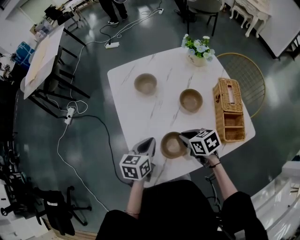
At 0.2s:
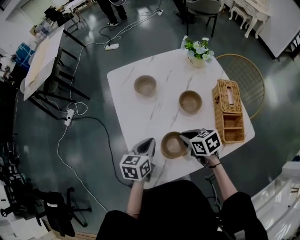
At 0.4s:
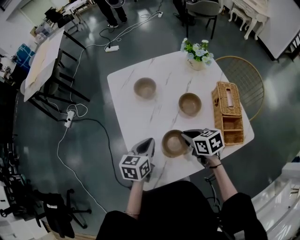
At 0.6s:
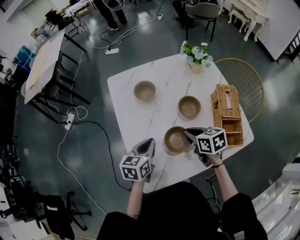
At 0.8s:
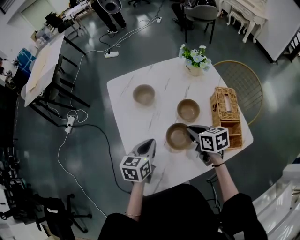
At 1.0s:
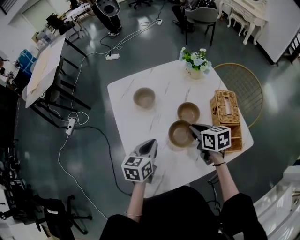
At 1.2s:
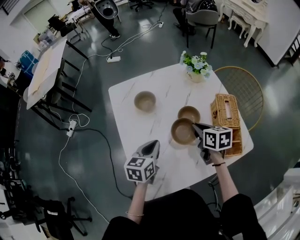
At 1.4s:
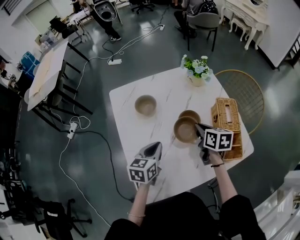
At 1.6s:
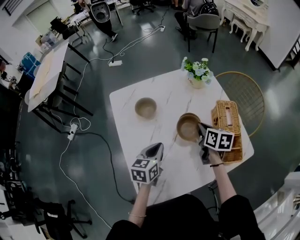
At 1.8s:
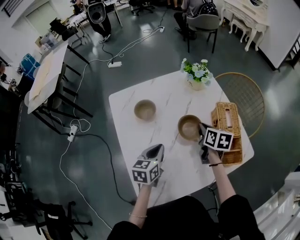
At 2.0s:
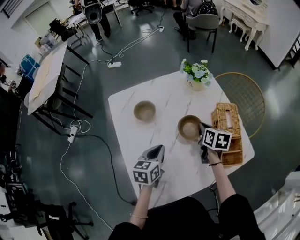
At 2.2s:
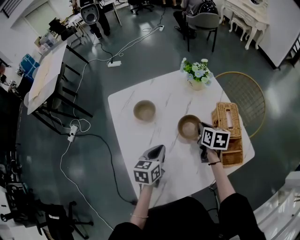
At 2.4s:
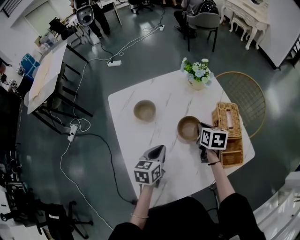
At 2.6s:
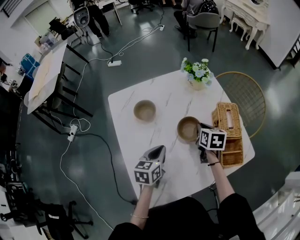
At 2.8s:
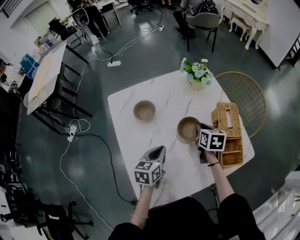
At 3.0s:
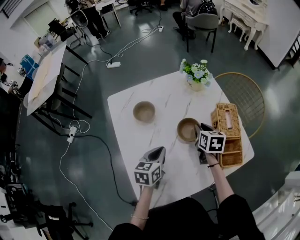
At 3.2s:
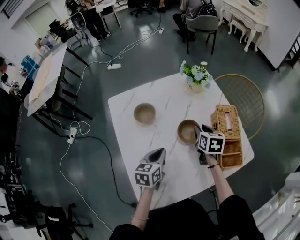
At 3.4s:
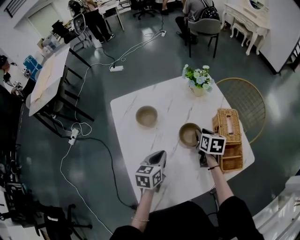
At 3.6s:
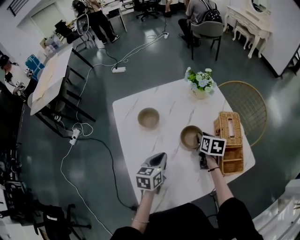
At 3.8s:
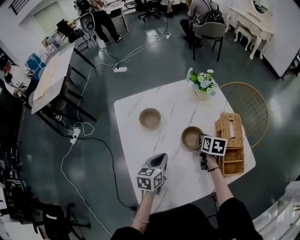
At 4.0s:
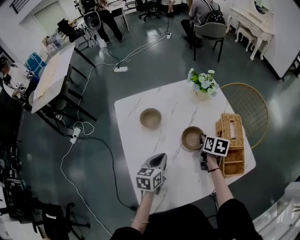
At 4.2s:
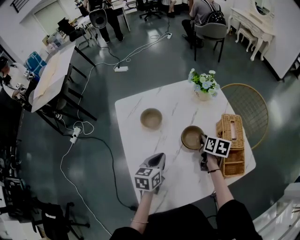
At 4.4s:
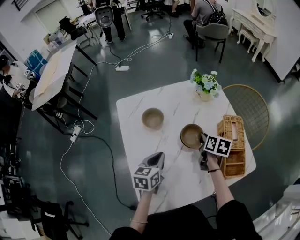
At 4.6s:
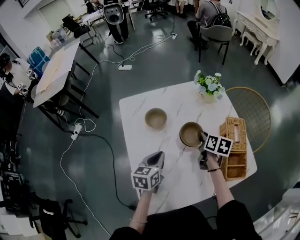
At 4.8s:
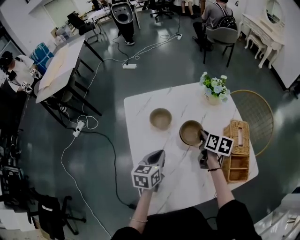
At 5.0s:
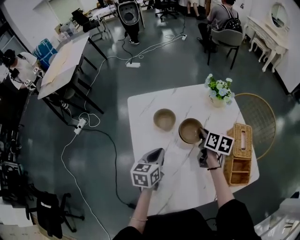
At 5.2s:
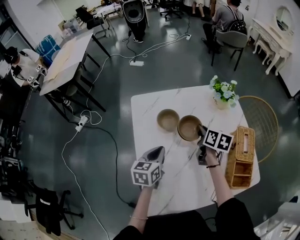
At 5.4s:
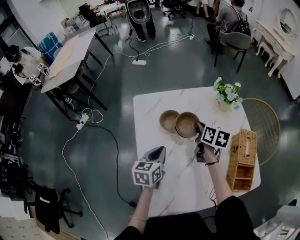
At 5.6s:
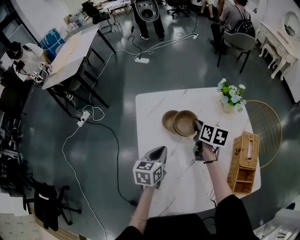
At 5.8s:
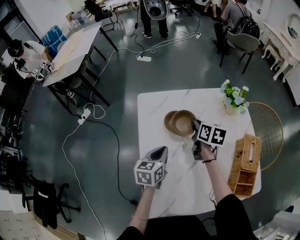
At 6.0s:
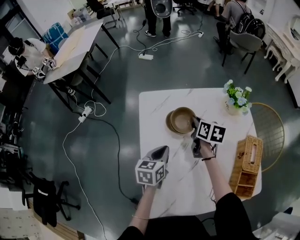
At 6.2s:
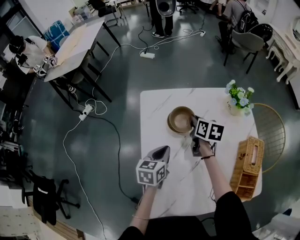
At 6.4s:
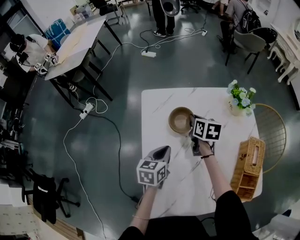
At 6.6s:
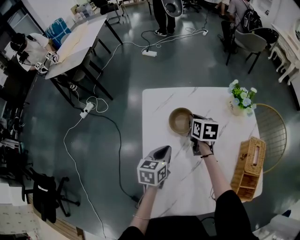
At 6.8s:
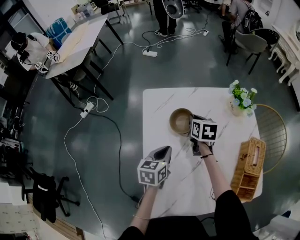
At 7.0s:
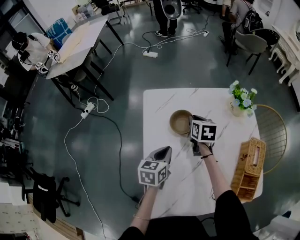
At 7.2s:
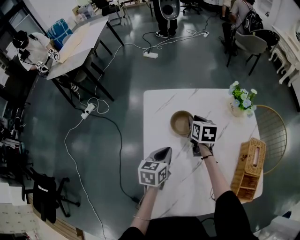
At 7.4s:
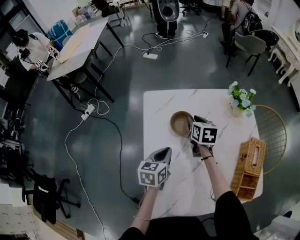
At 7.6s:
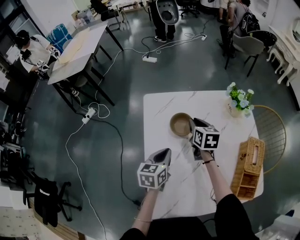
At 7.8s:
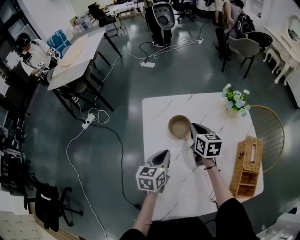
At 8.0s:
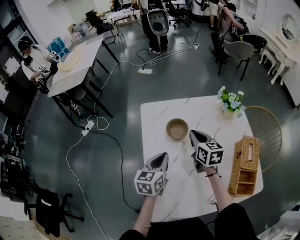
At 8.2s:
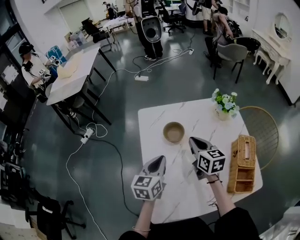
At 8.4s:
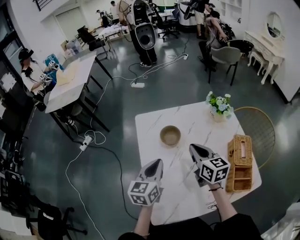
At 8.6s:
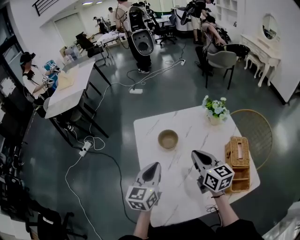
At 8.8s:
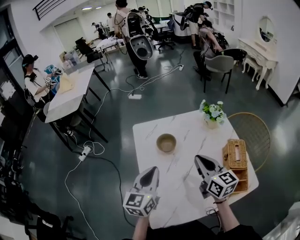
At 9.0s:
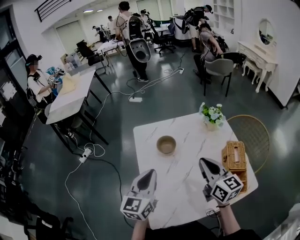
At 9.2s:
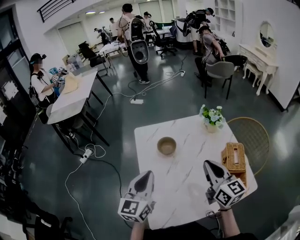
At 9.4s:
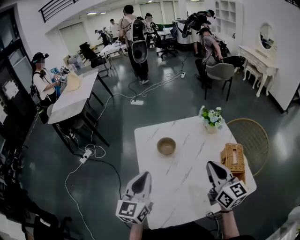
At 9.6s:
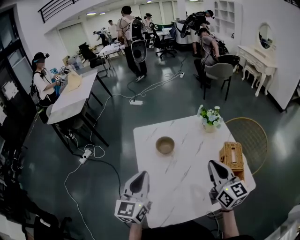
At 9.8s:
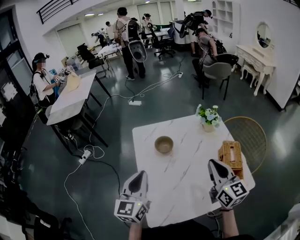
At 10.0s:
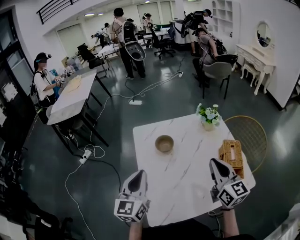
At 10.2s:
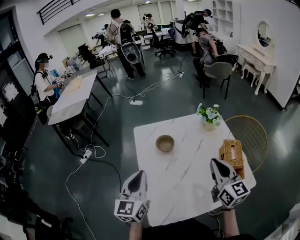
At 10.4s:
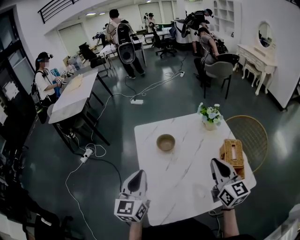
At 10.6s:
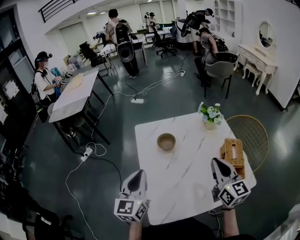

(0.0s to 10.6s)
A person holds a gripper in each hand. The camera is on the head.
0.0s - 1.6s: The left gripper shifts roughly 10 cm forward and to the right. The right gripper shifts some 20 cm forward and to the right, and swivels about 40 degrees.
1.6s - 3.0s: The grippers make only small movements.
3.0s - 4.6s: The grippers move only a little.
4.6s - 6.0s: The right gripper shifts roughly 20 cm to the left and forward; the left gripper moves to the left and forward, approximately 10 cm.
6.0s - 7.6s: The grippers move only a little.
7.6s - 9.0s: The right gripper heads backward and upward, covering some 25 cm, and turns by some 30 degrees. The left gripper heads upward and backward, covering about 20 cm, and changes its angle by approximately 30 degrees.
9.0s - 10.6s: The left gripper moves about 5 cm, while the right gripper travels backward by about 5 cm.

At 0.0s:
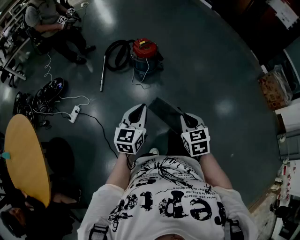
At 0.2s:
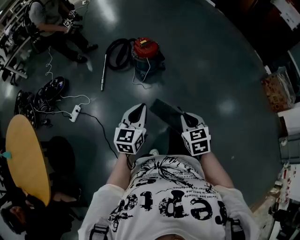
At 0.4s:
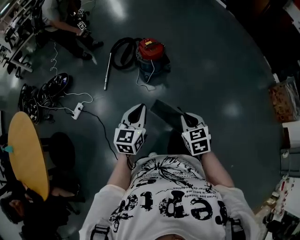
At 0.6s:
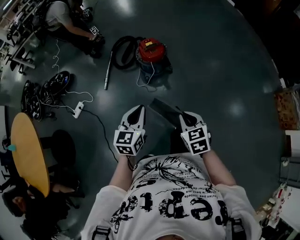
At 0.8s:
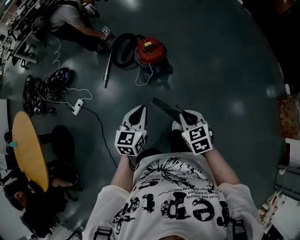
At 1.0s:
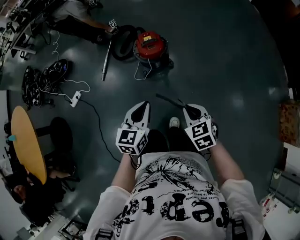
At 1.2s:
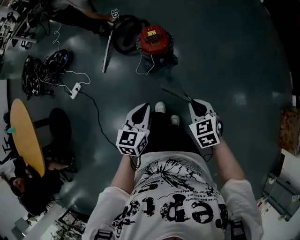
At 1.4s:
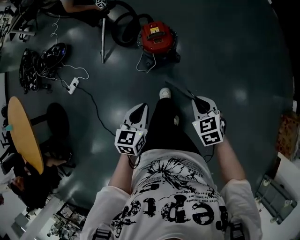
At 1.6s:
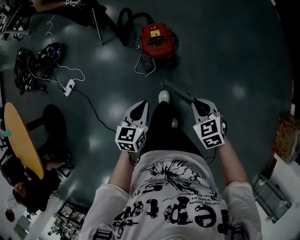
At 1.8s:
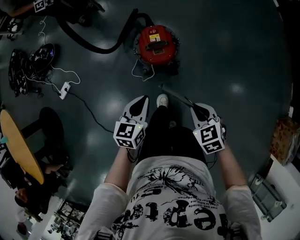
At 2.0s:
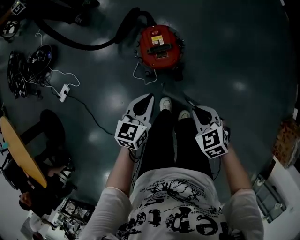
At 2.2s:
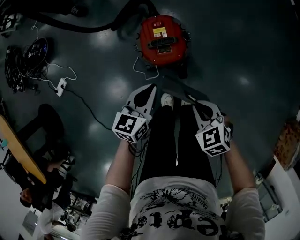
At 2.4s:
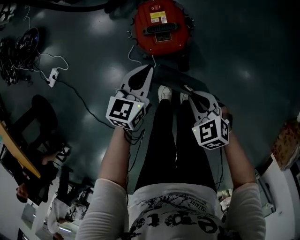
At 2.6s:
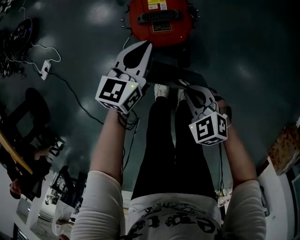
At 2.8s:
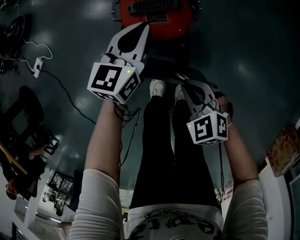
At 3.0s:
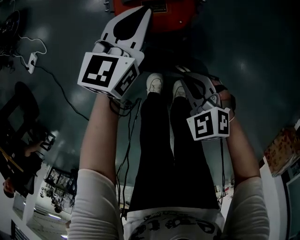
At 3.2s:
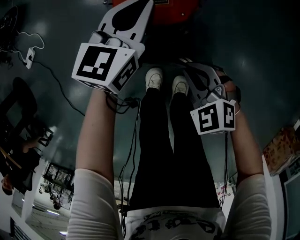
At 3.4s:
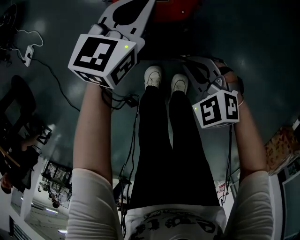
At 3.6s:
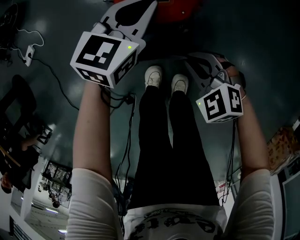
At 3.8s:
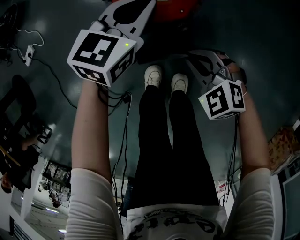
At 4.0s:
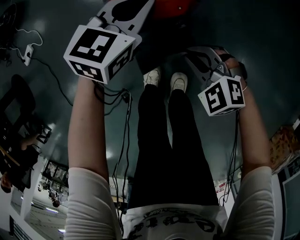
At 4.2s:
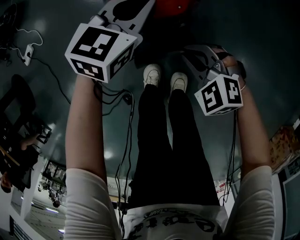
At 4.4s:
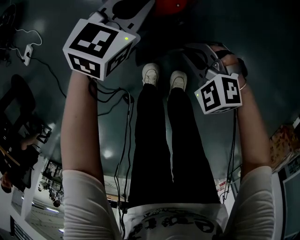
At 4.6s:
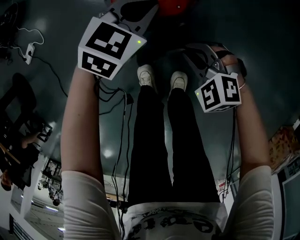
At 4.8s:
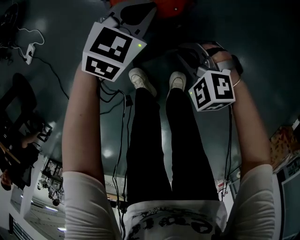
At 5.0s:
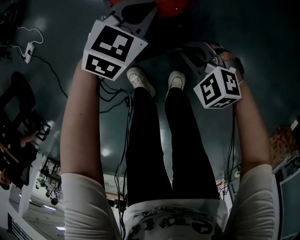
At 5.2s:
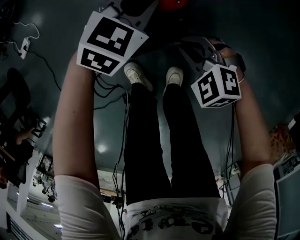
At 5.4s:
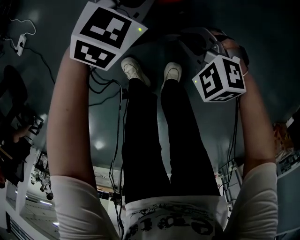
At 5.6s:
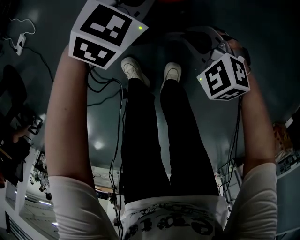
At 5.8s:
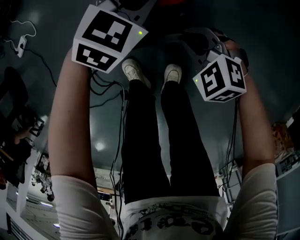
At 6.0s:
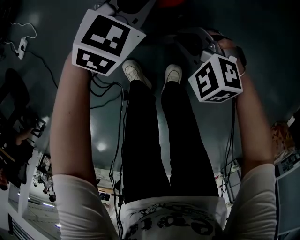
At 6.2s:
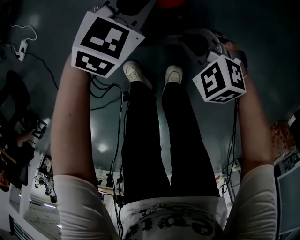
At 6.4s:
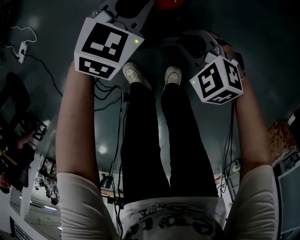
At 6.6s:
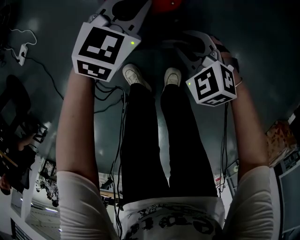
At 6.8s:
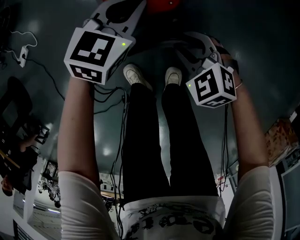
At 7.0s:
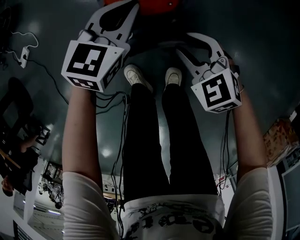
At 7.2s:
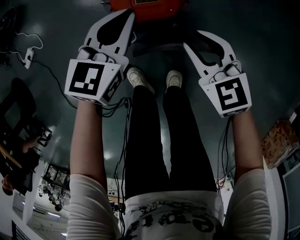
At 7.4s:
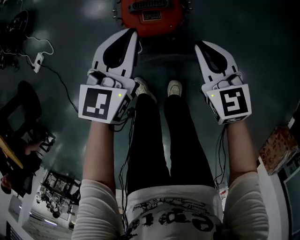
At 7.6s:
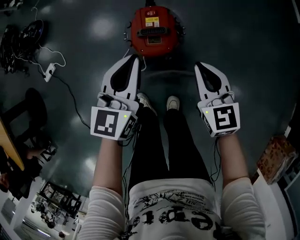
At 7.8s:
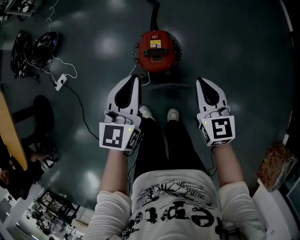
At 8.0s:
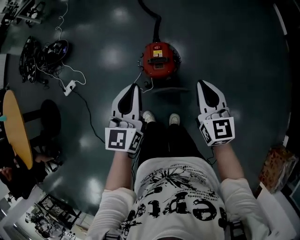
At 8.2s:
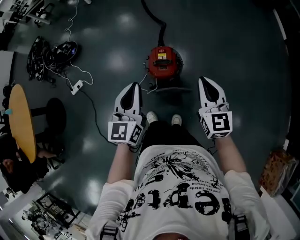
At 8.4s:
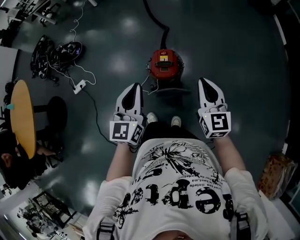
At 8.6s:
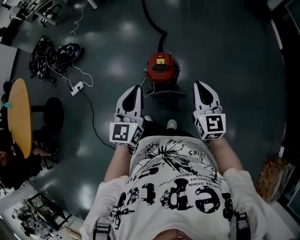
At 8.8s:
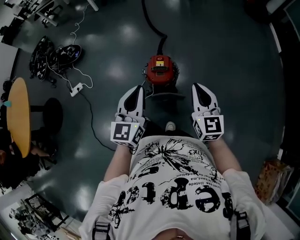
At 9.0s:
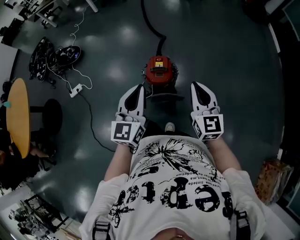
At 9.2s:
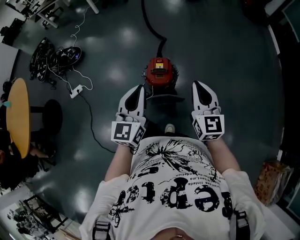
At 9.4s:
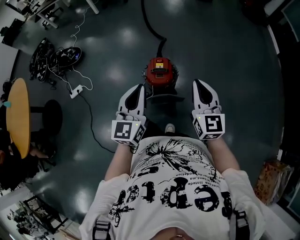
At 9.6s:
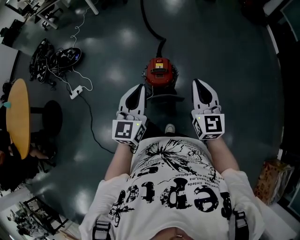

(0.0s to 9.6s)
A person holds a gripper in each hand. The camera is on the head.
0.0s - 1.6s: The pair of grippers is taken about 50 cm. The right gripper swivels roughly 40 degrees. The left gripper changes its angle by some 30 degrees.
1.6s - 3.2s: The right gripper goes some 40 cm downward and forward, and rotates about 40 degrees. Meanwhile the left gripper moves forward and downward, about 40 cm.
3.2s - 4.8s: The left gripper moves roughly 5 cm, and changes its angle by some 30 degrees.
4.8s - 6.4s: There are only small adjustments of the grippers.
6.4s - 8.0s: The grippers both shift upward by about 50 cm. The right gripper points its fingers approximately 40 degrees further upward, and opens, then closes once more, while the left gripper turns by some 50 degrees.
8.0s - 9.6s: The two grippers go about 15 cm upward and backward.

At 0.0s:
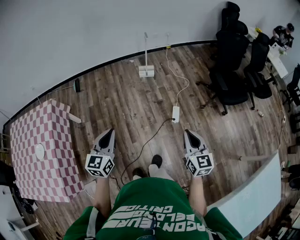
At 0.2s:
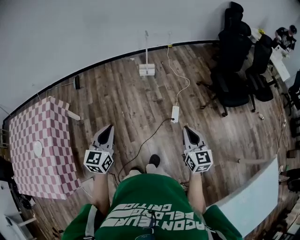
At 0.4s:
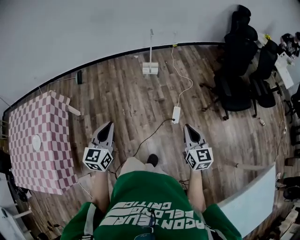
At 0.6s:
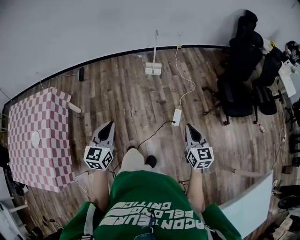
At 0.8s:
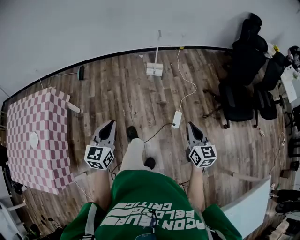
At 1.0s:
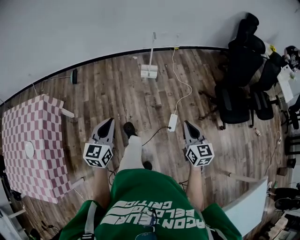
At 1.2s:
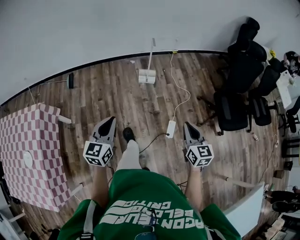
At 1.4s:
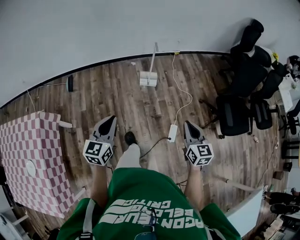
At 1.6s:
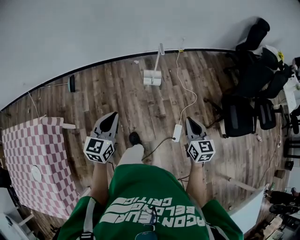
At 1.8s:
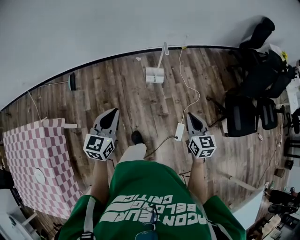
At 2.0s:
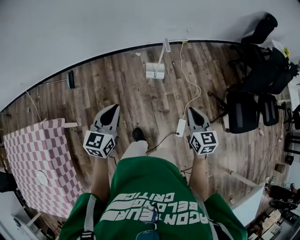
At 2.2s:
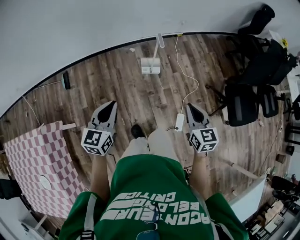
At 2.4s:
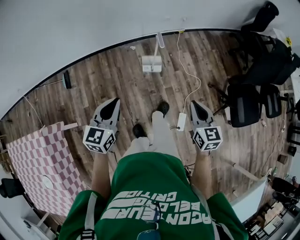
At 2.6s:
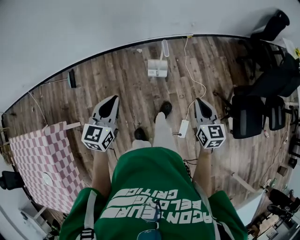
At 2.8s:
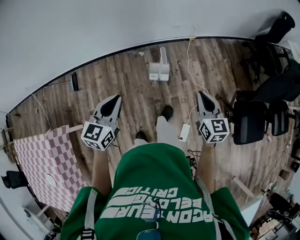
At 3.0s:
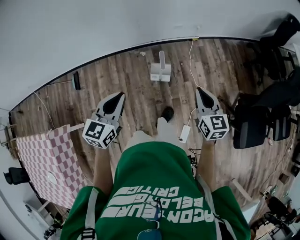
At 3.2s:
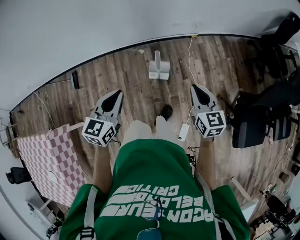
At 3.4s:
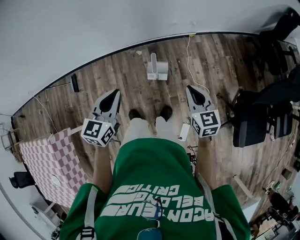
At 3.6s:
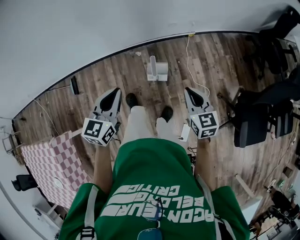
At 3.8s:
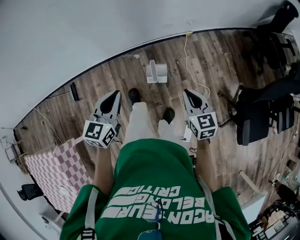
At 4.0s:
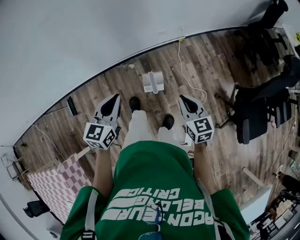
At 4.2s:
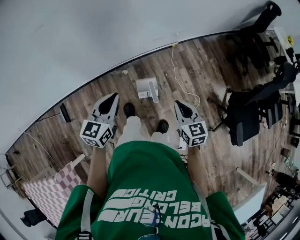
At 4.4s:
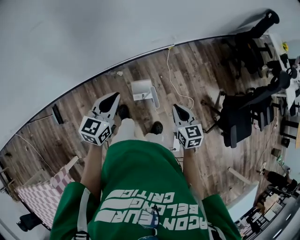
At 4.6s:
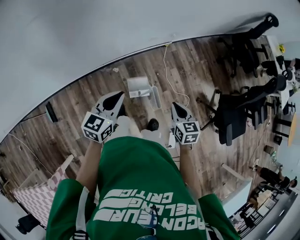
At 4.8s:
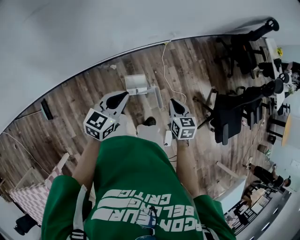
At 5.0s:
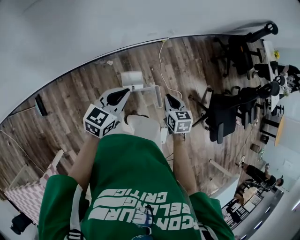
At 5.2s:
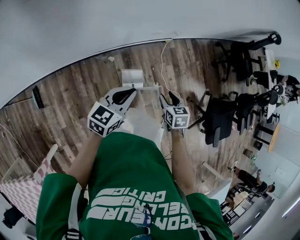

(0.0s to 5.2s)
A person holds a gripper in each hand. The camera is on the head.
0.0s - 1.8s: The pair of grippers is taken forward, roughly 50 cm.
1.8s - 3.4s: Both grippers move forward, about 35 cm.
3.4s - 5.2s: The right gripper shifts by about 25 cm, swivels some 30 degrees, and opens up; the left gripper changes place by about 25 cm, and changes its angle by about 30 degrees.
